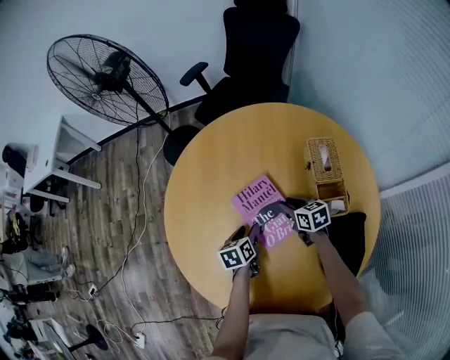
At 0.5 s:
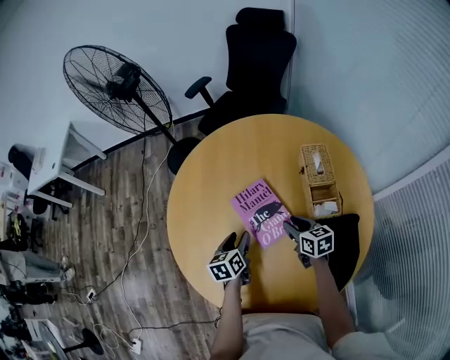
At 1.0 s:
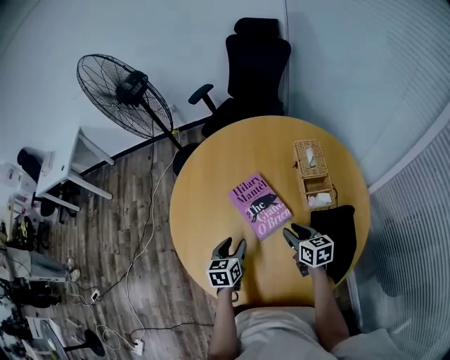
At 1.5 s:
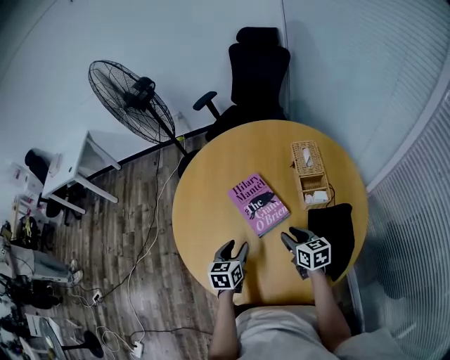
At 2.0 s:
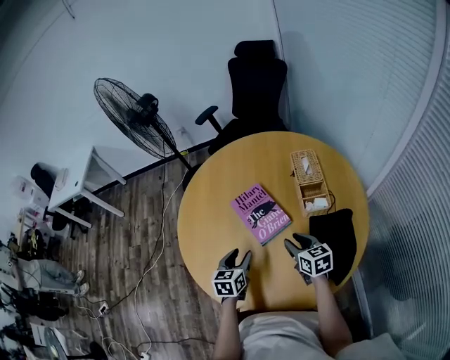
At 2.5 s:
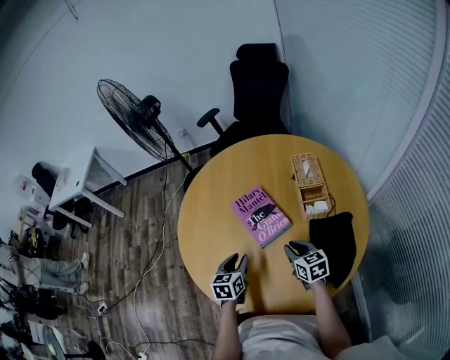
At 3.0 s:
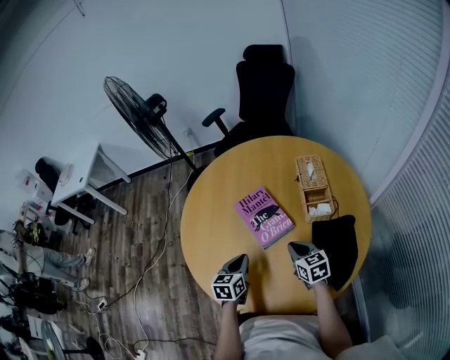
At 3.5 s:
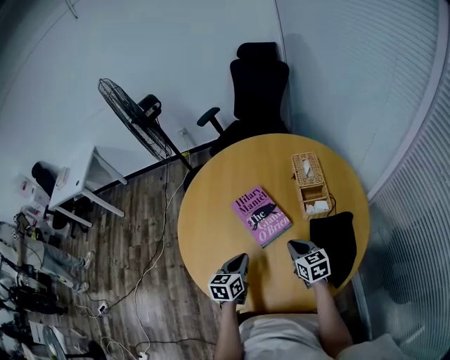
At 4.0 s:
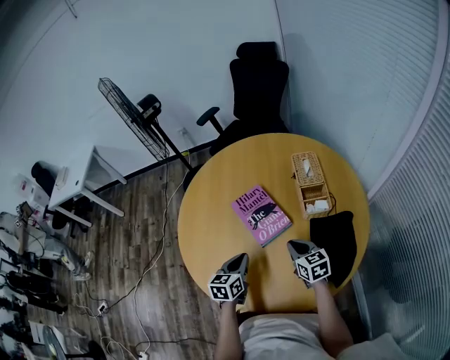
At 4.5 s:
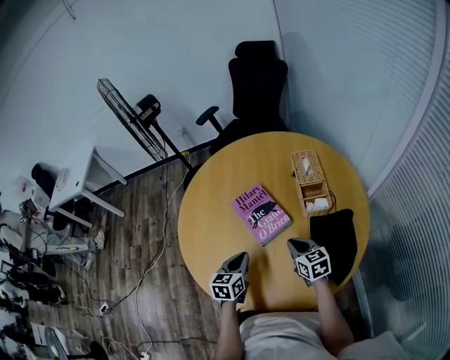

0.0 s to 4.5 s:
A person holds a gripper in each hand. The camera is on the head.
0.0 to 2.0 s: The grippers both shift backward and upward by roughly 20 cm. The left gripper turns by roughly 30 degrees.
2.0 to 4.5 s: The left gripper closes; the right gripper closes up.

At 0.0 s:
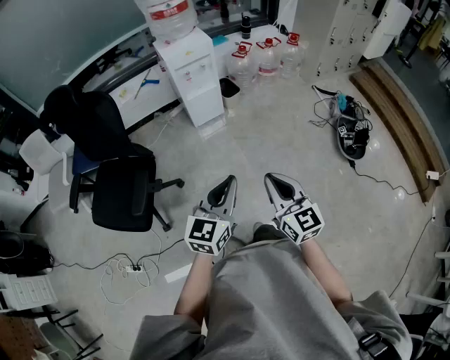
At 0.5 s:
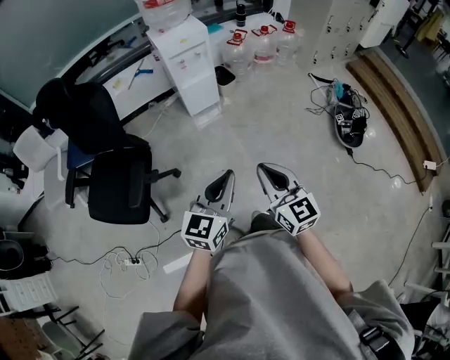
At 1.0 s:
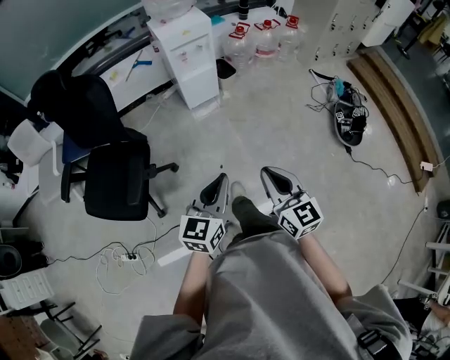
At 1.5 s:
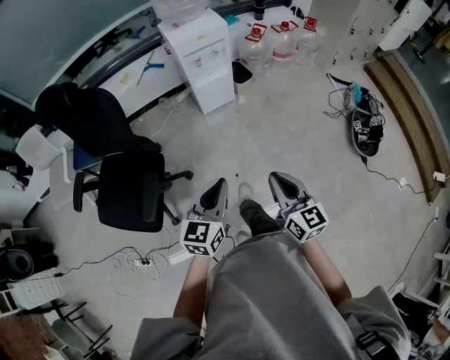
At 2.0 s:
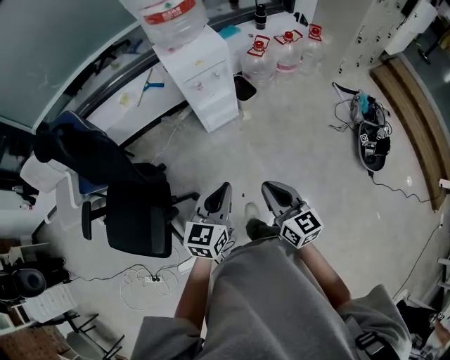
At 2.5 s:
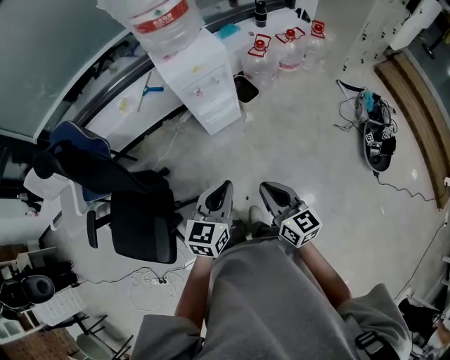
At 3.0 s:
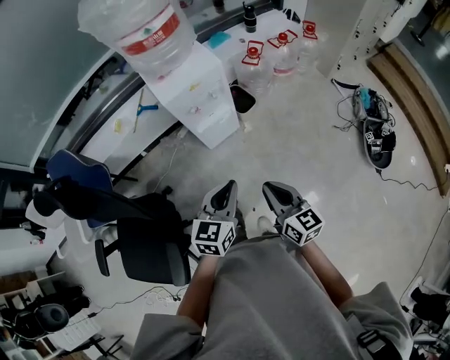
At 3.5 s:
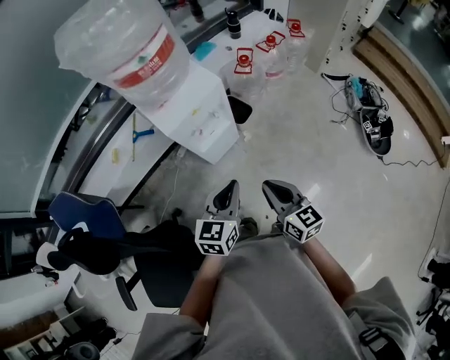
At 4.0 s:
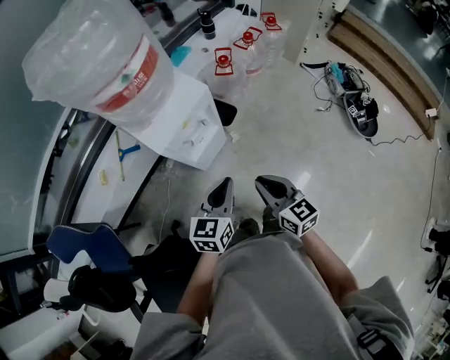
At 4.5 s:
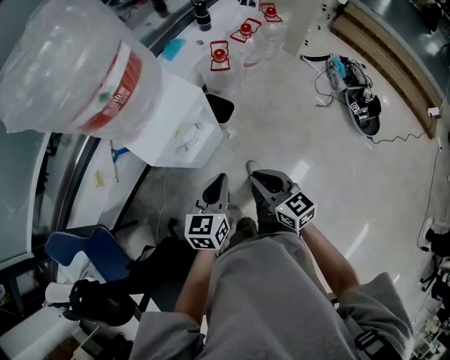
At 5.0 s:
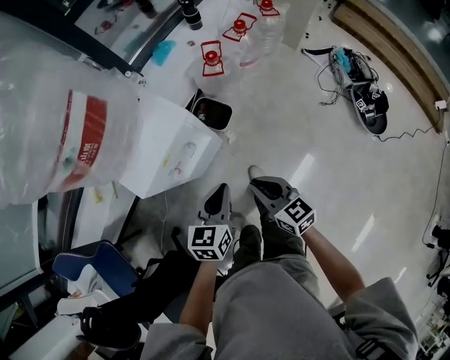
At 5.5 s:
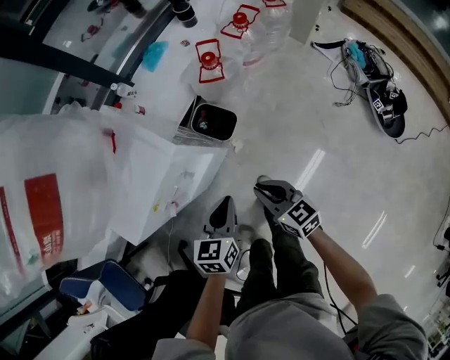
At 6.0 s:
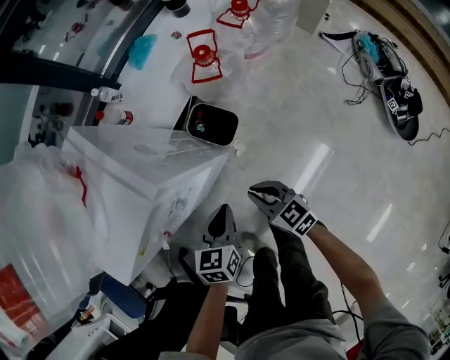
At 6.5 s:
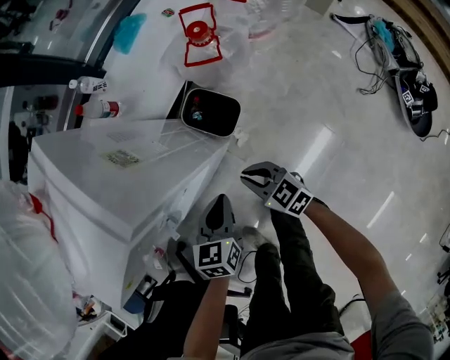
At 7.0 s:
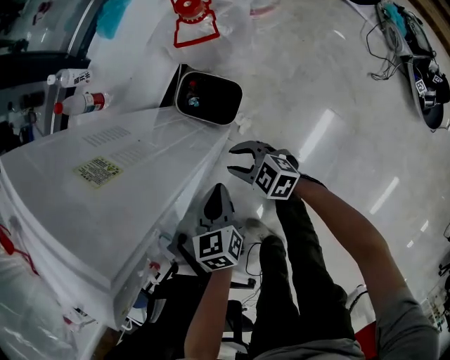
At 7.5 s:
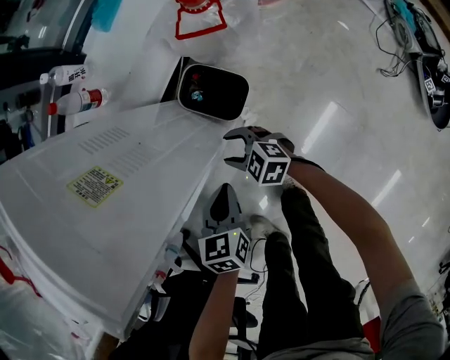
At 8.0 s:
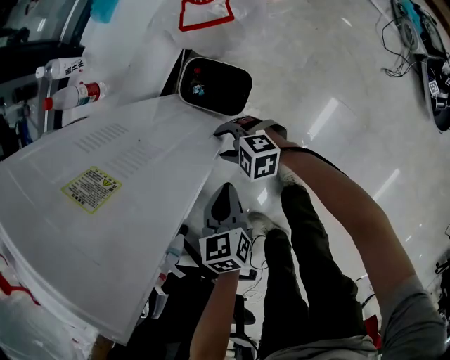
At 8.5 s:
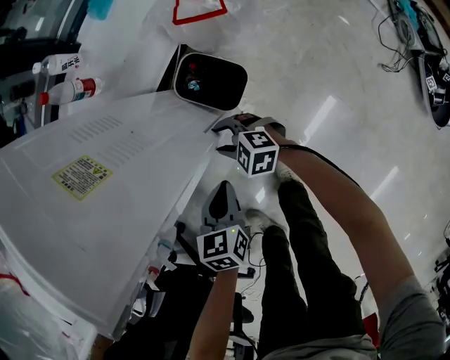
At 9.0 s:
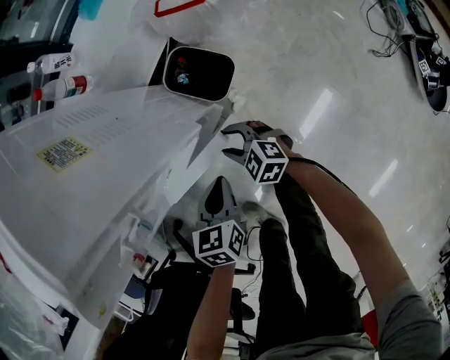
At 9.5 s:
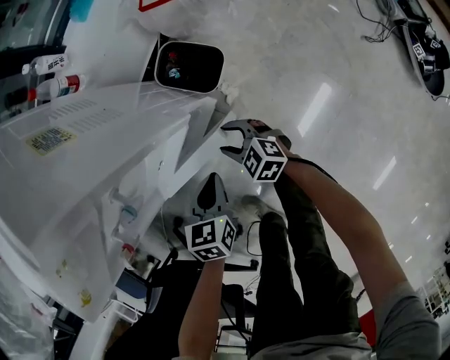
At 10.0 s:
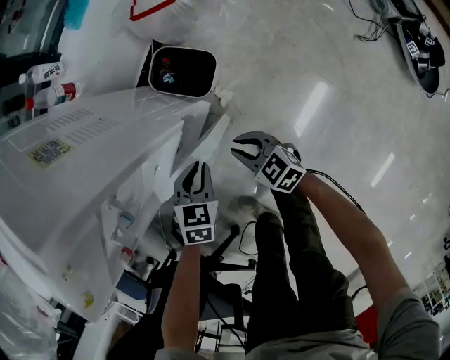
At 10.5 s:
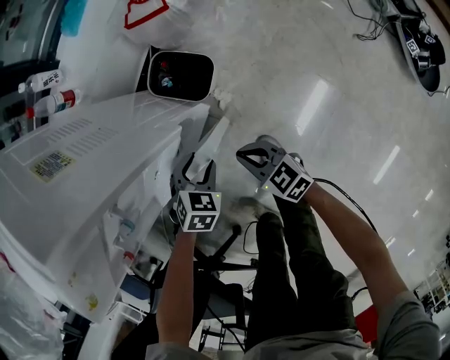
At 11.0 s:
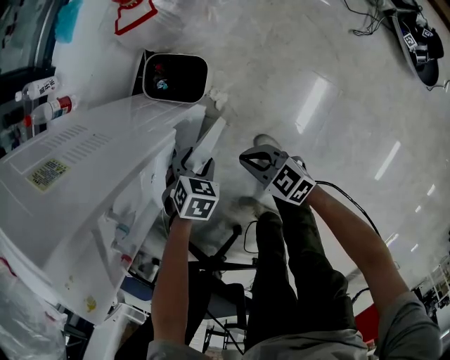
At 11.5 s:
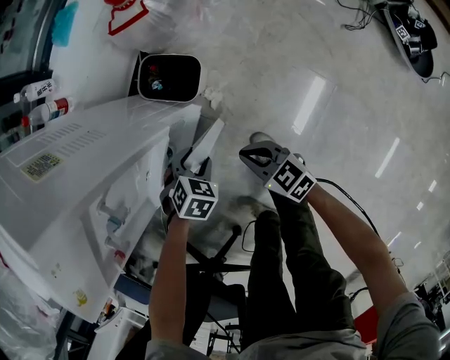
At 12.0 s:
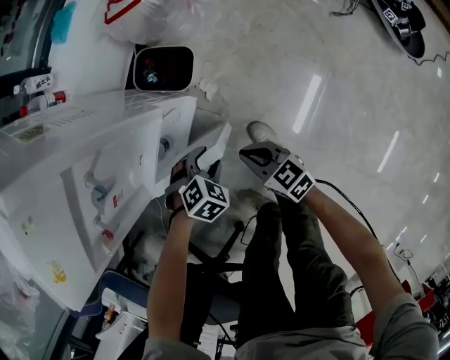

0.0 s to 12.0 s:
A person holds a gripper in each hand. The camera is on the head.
0.0 to 2.0 s: Both grippers move forward, approximately 25 cm.
2.0 to 4.0 s: The two grippers go about 30 cm forward. The left gripper rotates approximately 20 degrees.
4.0 to 6.0 s: The two grippers go approximately 40 cm downward and forward. The right gripper turns by some 20 degrees. Meanwhile the left gripper swivels approximately 20 degrees.
6.0 to 8.0 s: The left gripper goes roughly 15 cm downward, while the right gripper shifts roughly 25 cm downward and forward, swivels about 40 degrees, and opens.
8.0 to 10.0 s: The left gripper ends up some 5 cm from where it was, and rotates about 30 degrees. Meanwhile the right gripper moves backward, approximately 15 cm, rotates approximately 40 degrees, and closes its fingers.
10.0 to 12.0 s: The left gripper shifts by about 10 cm, twists approximately 40 degrees clockwise, seen from behind, and opens up. Meanwhile the right gripper shifts by about 10 cm.

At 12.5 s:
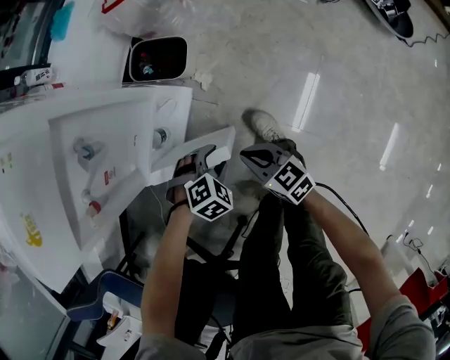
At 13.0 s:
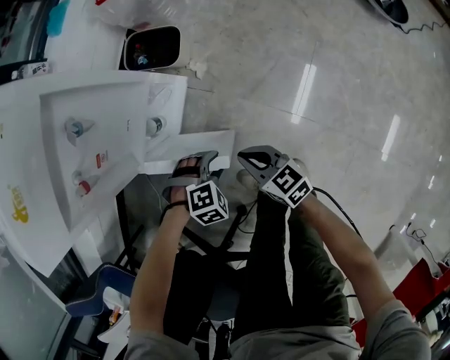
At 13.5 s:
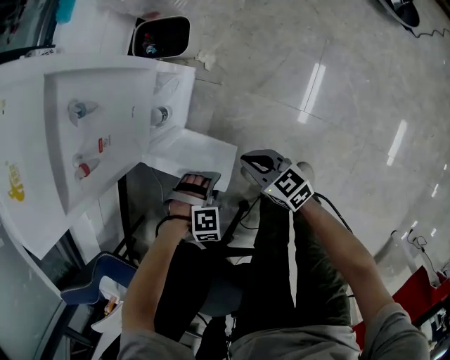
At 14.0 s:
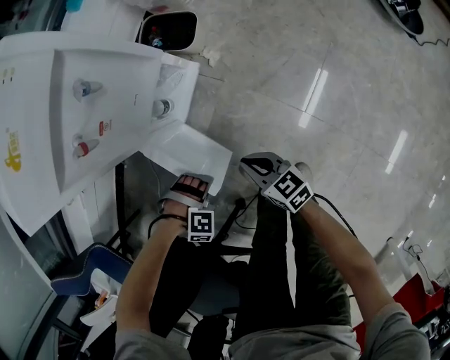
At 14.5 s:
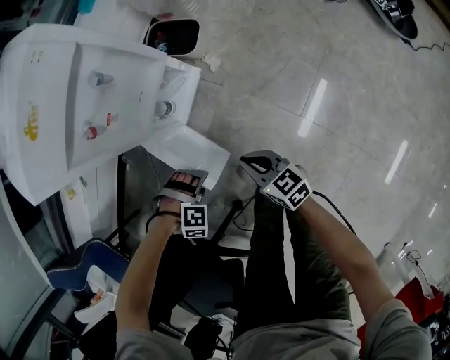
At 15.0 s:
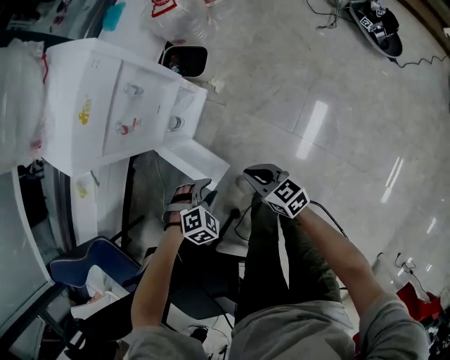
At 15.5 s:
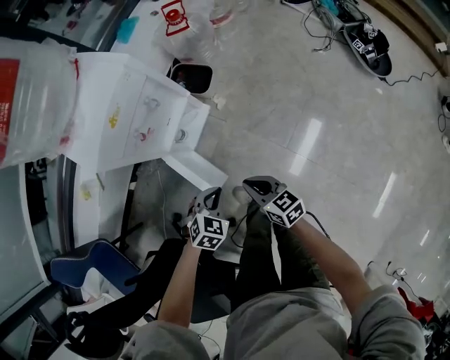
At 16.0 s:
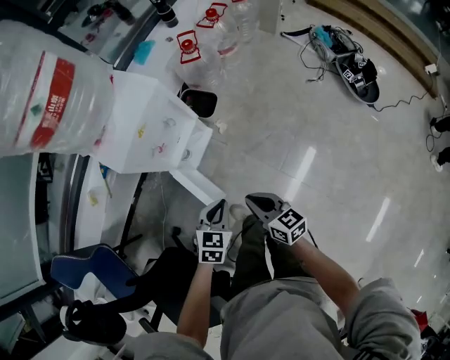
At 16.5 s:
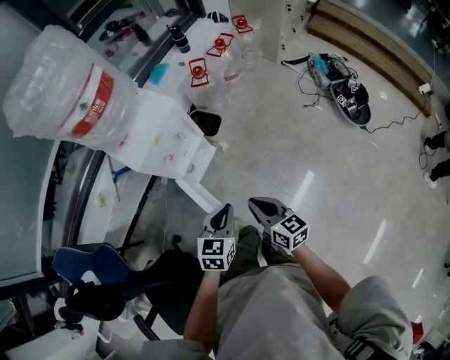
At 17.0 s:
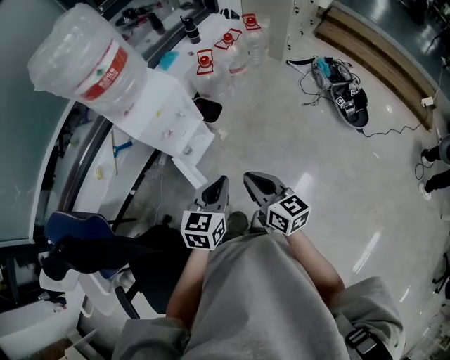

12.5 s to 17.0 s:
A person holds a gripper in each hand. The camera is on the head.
12.5 to 14.5 s: The right gripper moves some 15 cm. Meanwhile the left gripper shifts by some 20 cm, and changes its angle by about 40 degrees.
14.5 to 17.0 s: Both grippers travel together upward, some 50 cm. The left gripper tips its fingers upward by about 60 degrees, and closes its fingers; the right gripper swivels about 20 degrees.

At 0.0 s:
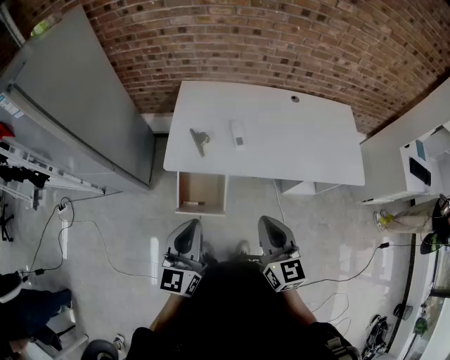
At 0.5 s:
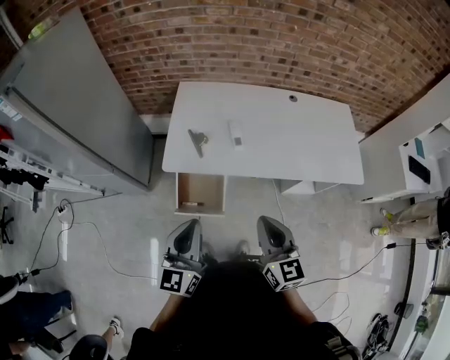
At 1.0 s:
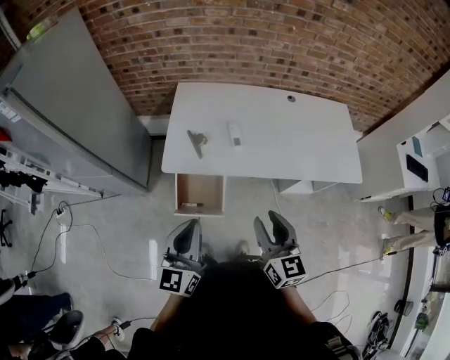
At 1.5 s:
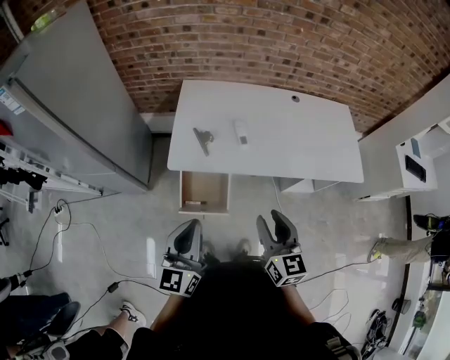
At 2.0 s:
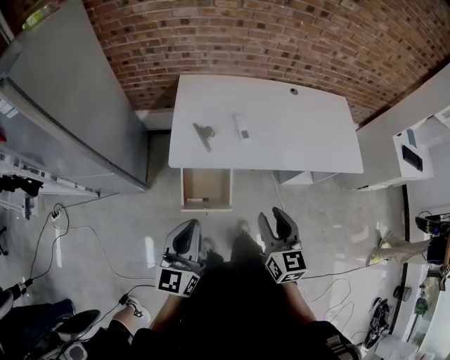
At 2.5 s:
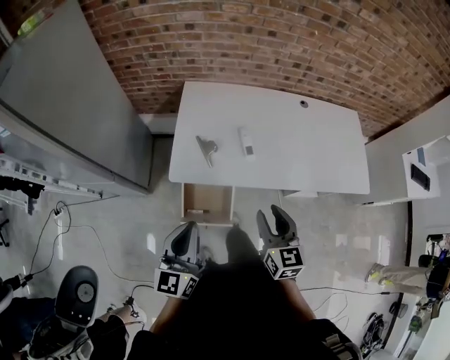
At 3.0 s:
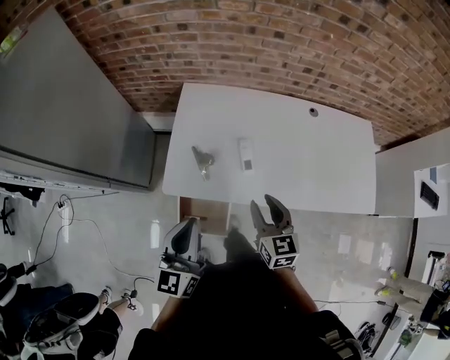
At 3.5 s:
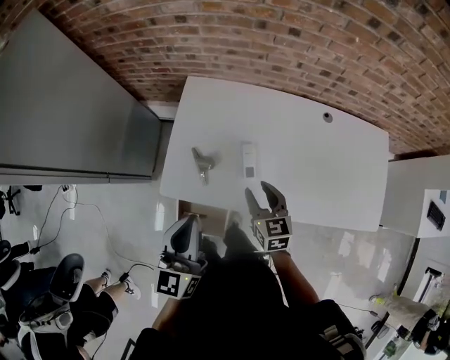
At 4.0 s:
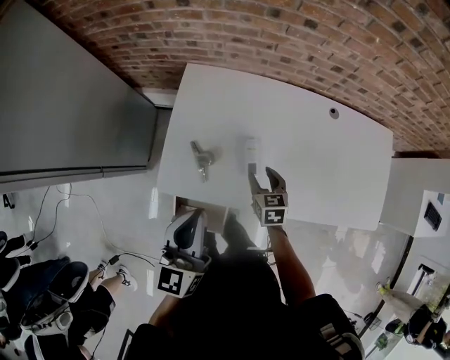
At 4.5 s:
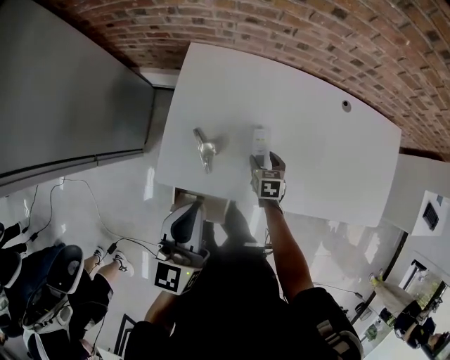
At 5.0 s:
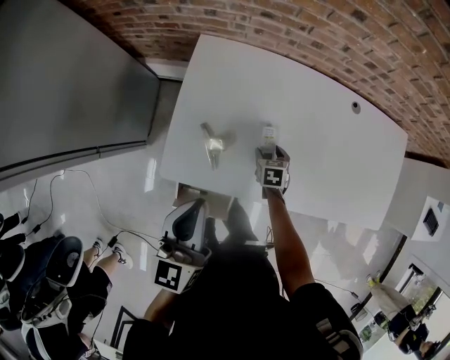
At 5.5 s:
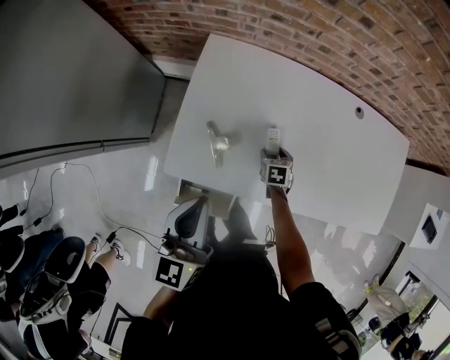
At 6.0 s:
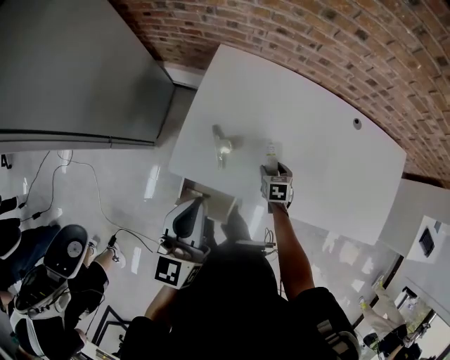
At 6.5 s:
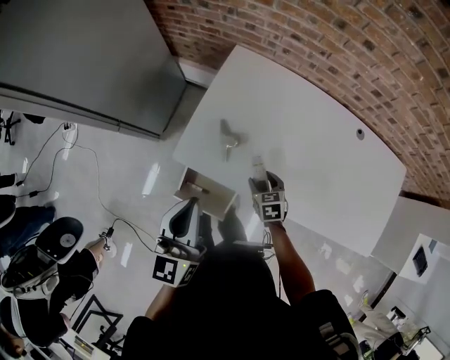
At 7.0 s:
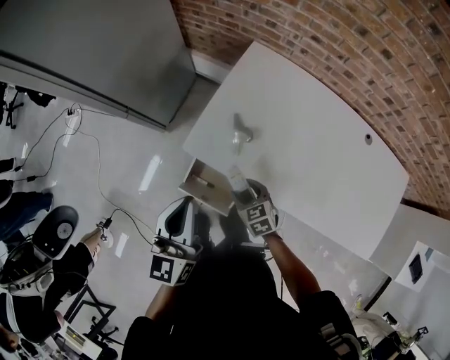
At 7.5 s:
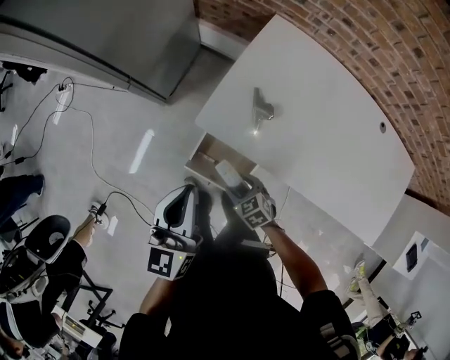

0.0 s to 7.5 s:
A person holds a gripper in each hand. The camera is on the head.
0.0 to 2.0 s: The two grippers go roughly 5 cm to the left. The right gripper opens up.
2.0 to 4.0 s: The right gripper is displaced forward and downward by about 40 cm, and changes its angle by some 30 degrees. The left gripper heads forward, covering about 30 cm.
4.0 to 5.5 s: The left gripper shifts by about 5 cm, while the right gripper travels downward by roughly 15 cm.
5.5 to 7.5 s: The left gripper ends up some 20 cm from where it was; the right gripper reaches approximately 10 cm upward, then returns, and rotates approximately 50 degrees.
